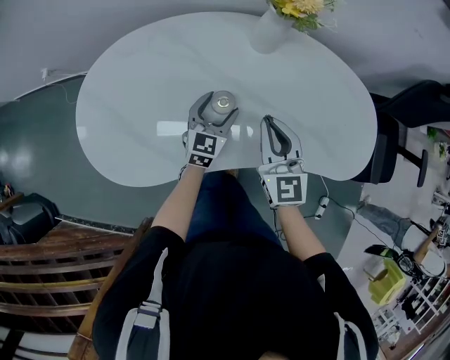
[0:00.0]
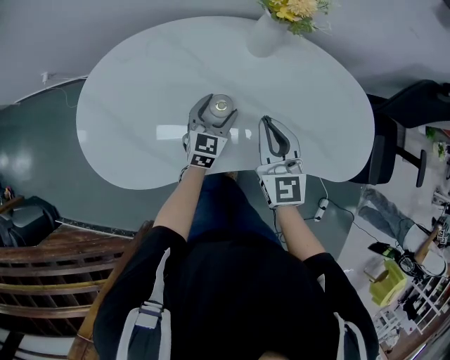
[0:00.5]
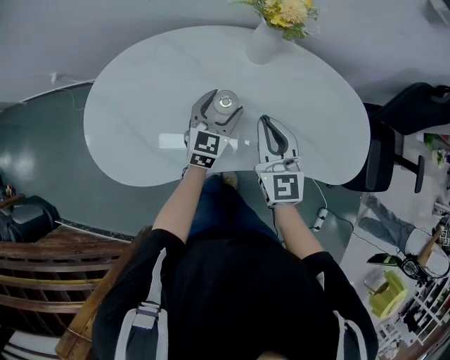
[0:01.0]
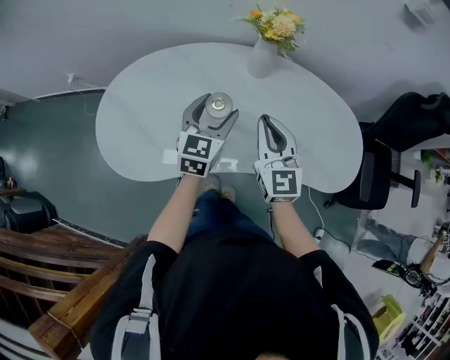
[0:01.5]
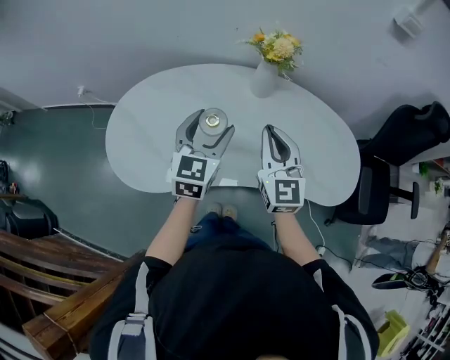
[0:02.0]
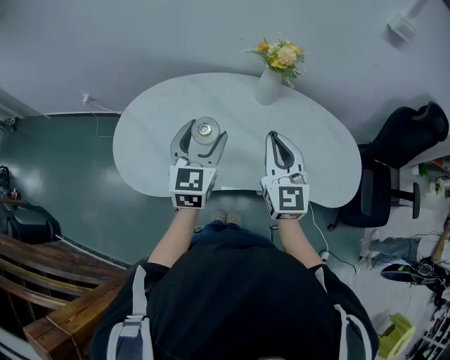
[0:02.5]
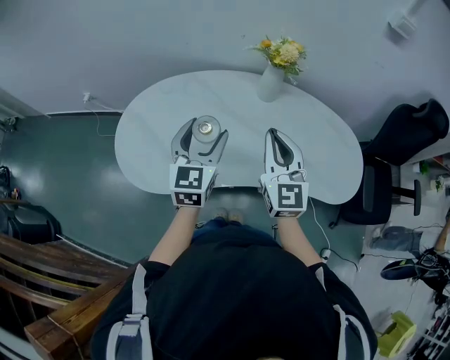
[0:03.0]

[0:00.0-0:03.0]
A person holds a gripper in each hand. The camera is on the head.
0:00.0 to 0:01.5: The left gripper is displaced upward by approximately 15 cm. Meanwhile the right gripper goes approximately 10 cm upward.
0:01.5 to 0:03.0: The left gripper heads upward, to the left and backward, covering some 15 cm. Meanwhile the right gripper travels upward by approximately 5 cm.

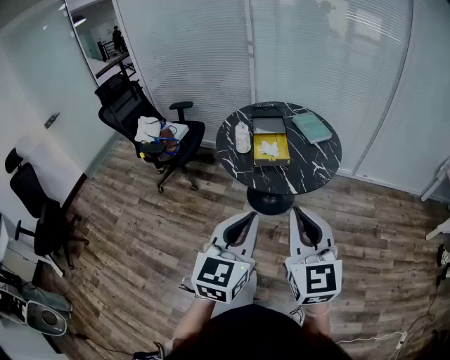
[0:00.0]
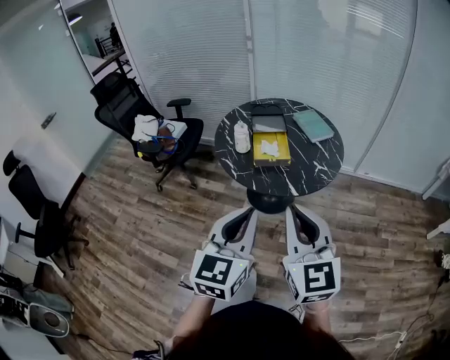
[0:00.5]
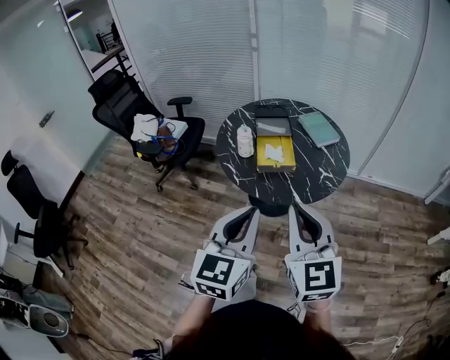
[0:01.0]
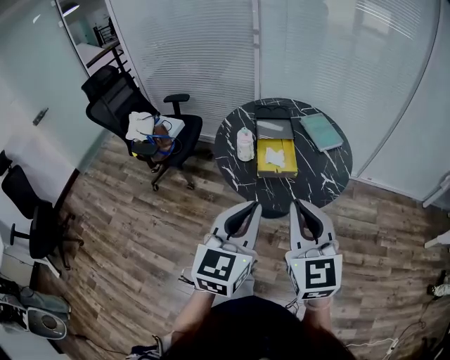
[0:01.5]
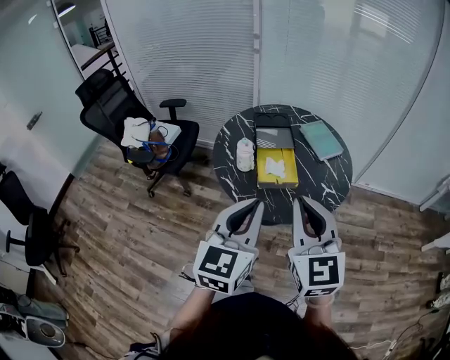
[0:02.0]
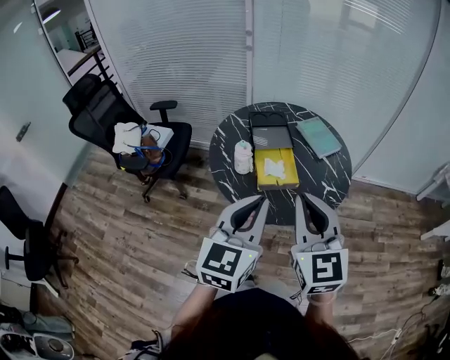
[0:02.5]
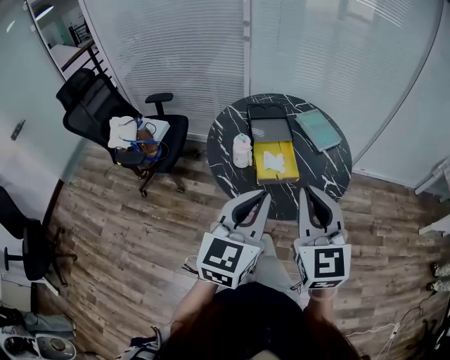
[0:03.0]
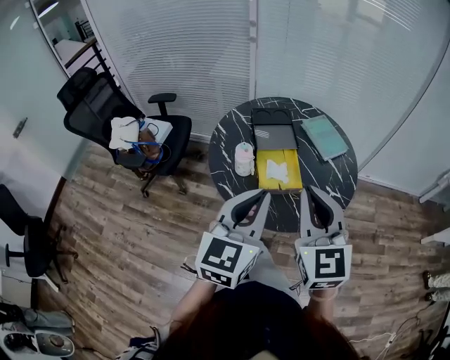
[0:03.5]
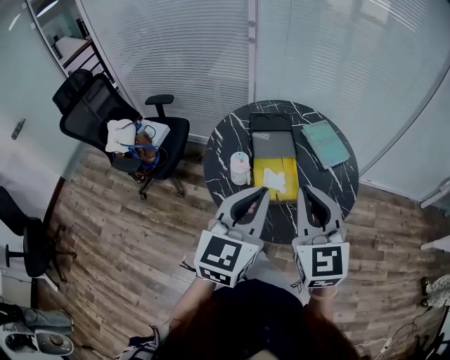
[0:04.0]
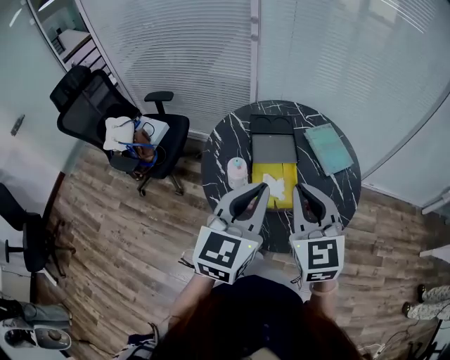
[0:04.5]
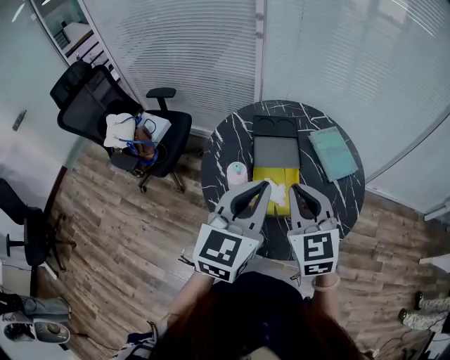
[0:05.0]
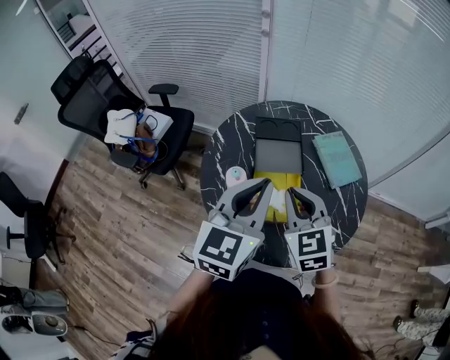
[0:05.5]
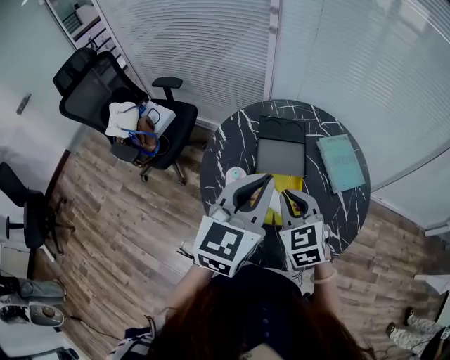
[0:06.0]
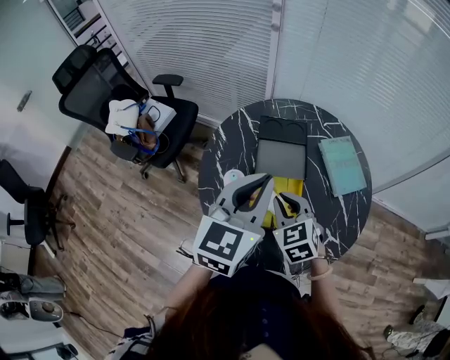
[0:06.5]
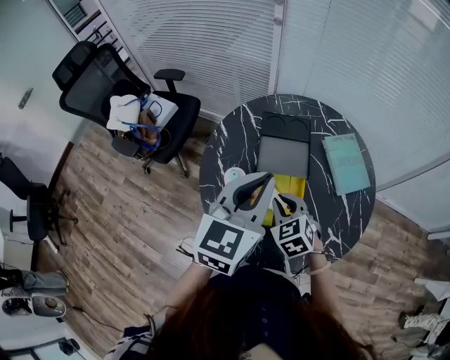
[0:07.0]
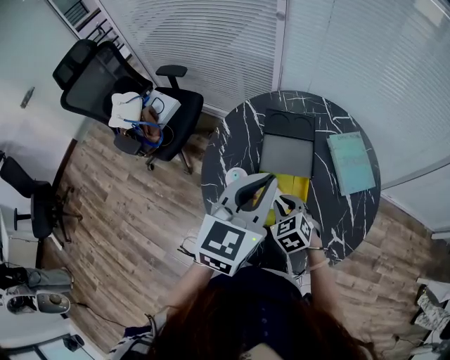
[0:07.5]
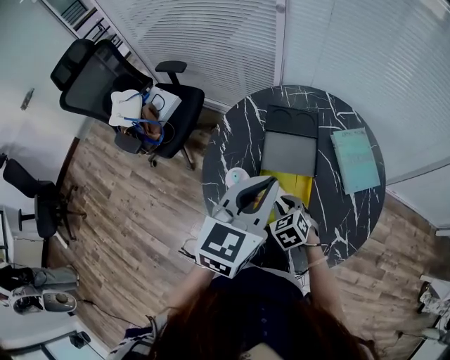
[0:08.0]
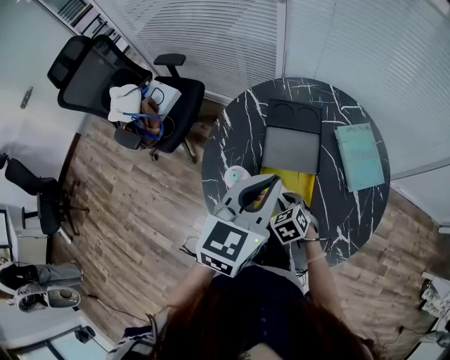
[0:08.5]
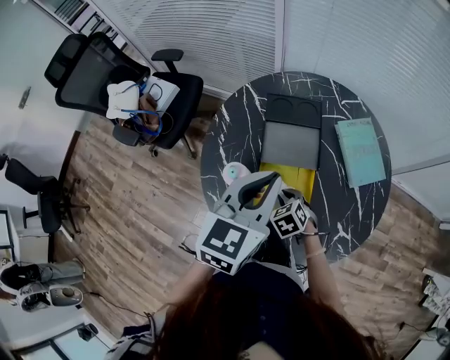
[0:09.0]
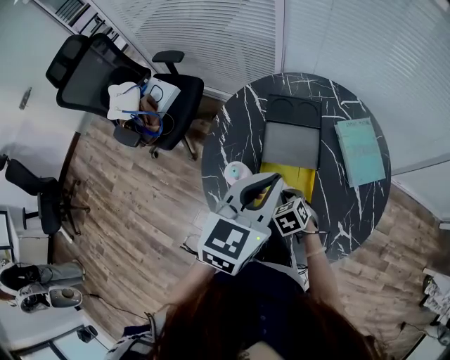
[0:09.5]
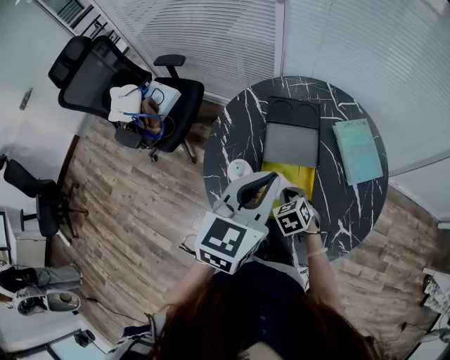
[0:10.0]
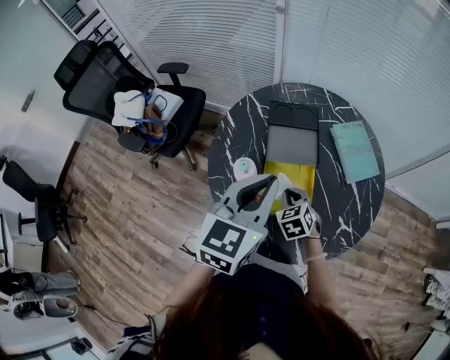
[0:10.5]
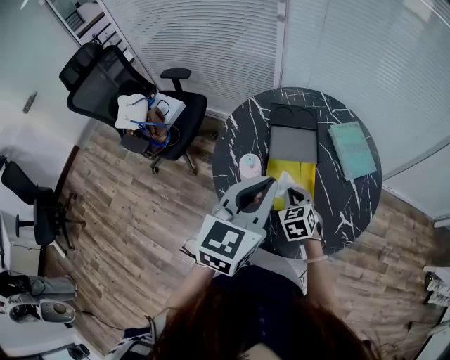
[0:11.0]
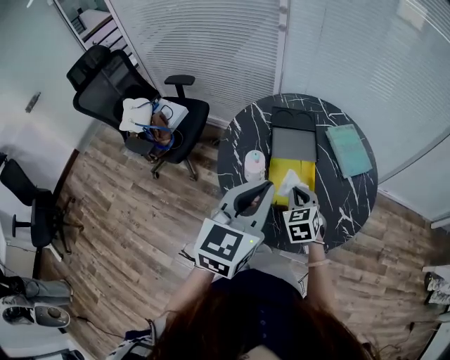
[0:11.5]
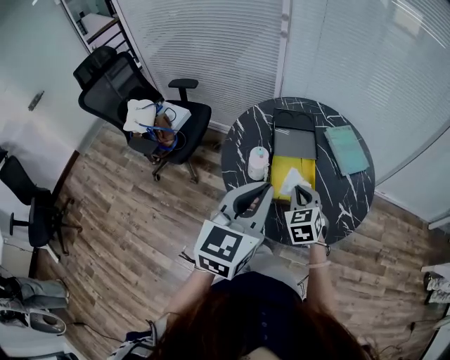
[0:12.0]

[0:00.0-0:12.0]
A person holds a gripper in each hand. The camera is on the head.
0:00.0 to 0:02.0: The grippers both shift forward by approximately 20 cm.
0:02.0 to 0:04.0: The grippers both shift forward by approximately 15 cm.
0:04.0 to 0:06.0: The right gripper is displaced downward and forward by roughly 20 cm, and turns by roughly 30 degrees. The left gripper is displaced forward by approximately 15 cm.
0:06.0 to 0:08.0: The left gripper moves downward, approximately 5 cm; the right gripper travels downward by approximately 20 cm, and rotates about 20 degrees.
0:08.0 to 0:10.0: There are only small adjustments of the grippers.
0:10.0 to 0:12.0: The right gripper travels upward and backward by some 20 cm, and rotates some 30 degrees, while the left gripper travels backward by approximately 15 cm.

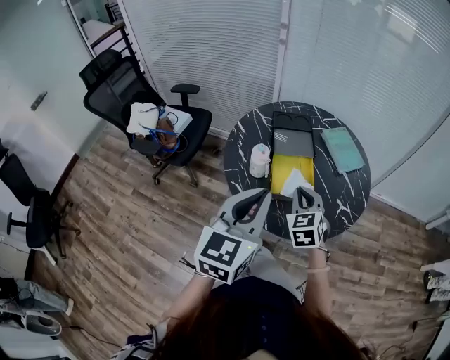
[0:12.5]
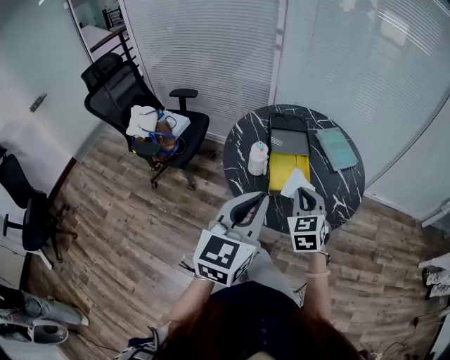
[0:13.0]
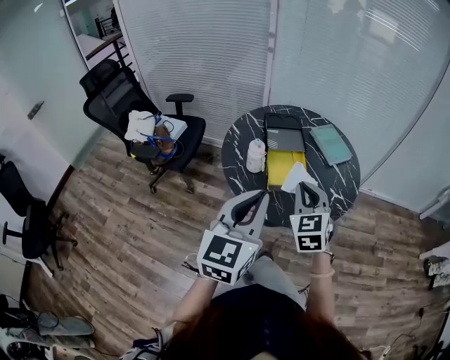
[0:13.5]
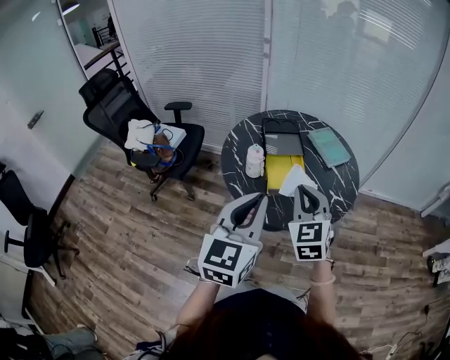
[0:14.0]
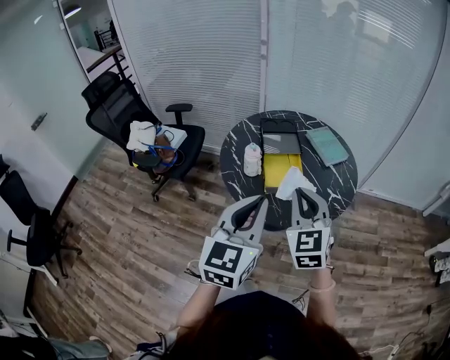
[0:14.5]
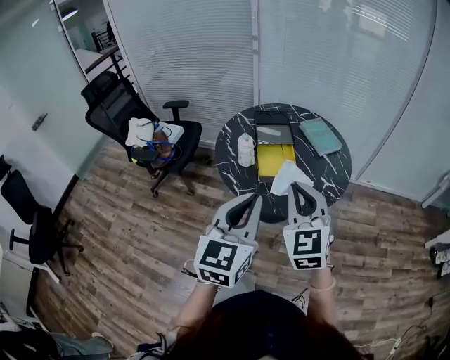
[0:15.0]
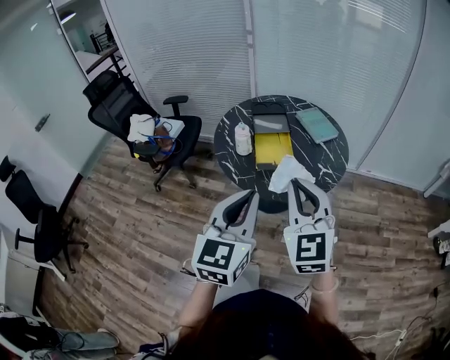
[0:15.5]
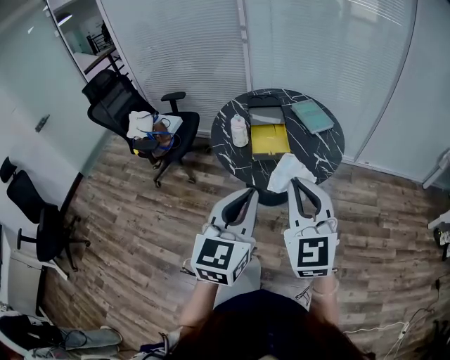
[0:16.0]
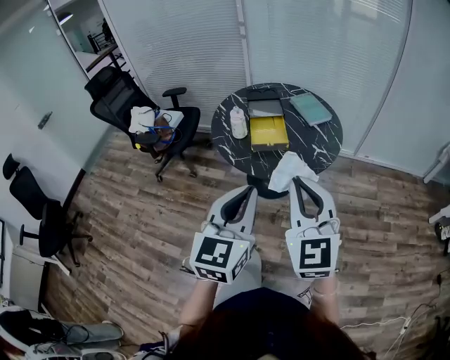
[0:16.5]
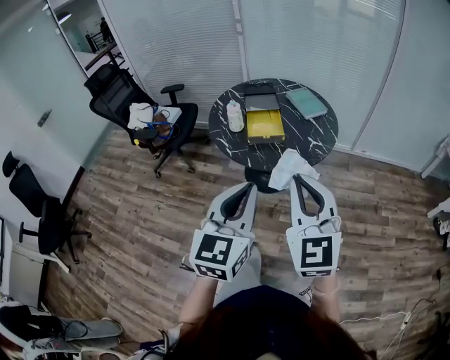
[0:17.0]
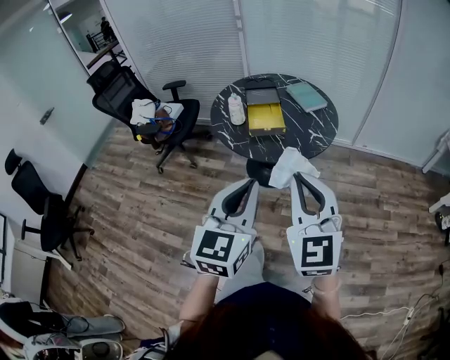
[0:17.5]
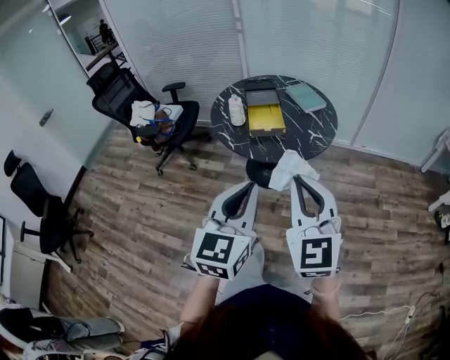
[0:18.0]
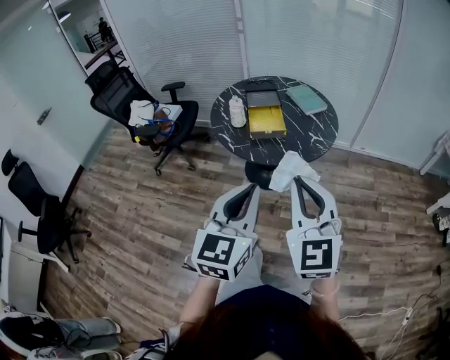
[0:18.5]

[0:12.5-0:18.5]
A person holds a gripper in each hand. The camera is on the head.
0:12.5 to 0:14.5: The right gripper travels backward and upward by roughly 20 cm. Meanwhile the left gripper is displaced backward by some 10 cm.
0:14.5 to 0:16.5: The right gripper heads backward, covering some 20 cm. The left gripper goes about 20 cm backward and to the right.
0:16.5 to 0:18.5: The grippers both shift backward by roughly 5 cm.

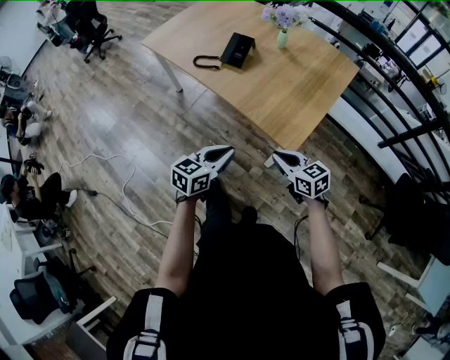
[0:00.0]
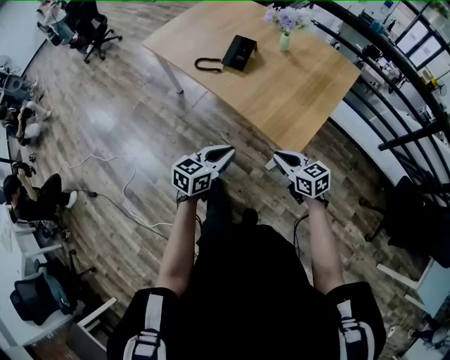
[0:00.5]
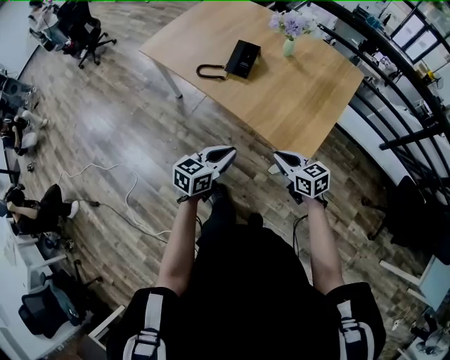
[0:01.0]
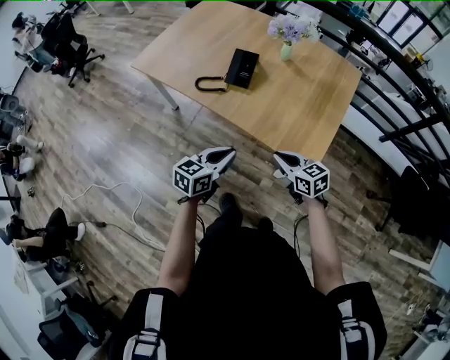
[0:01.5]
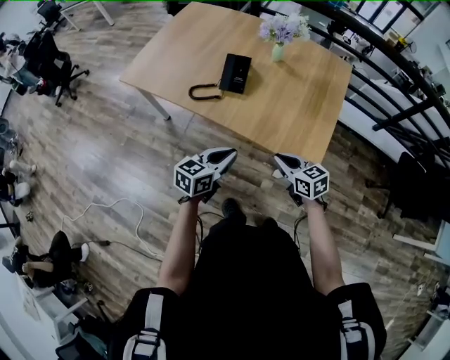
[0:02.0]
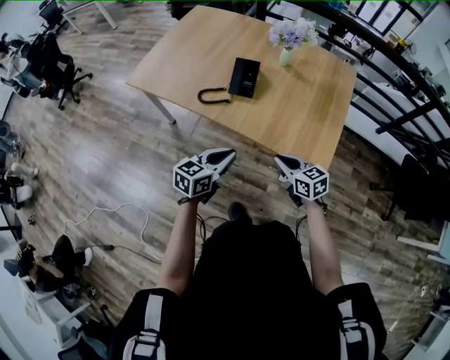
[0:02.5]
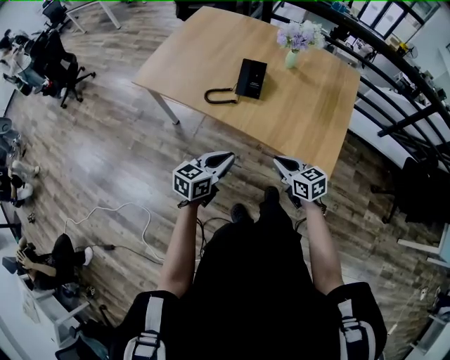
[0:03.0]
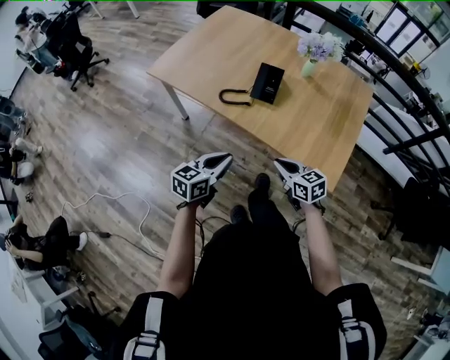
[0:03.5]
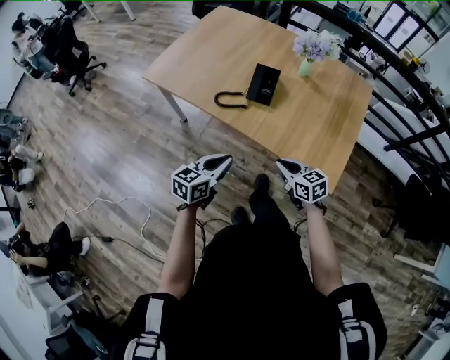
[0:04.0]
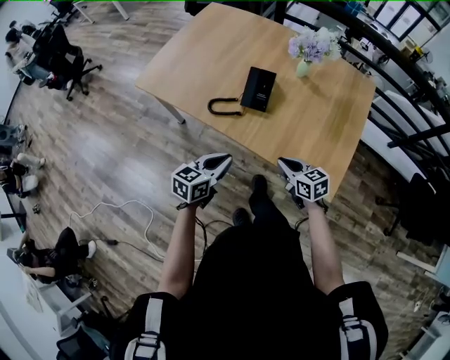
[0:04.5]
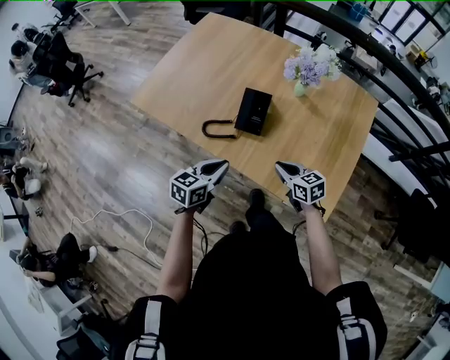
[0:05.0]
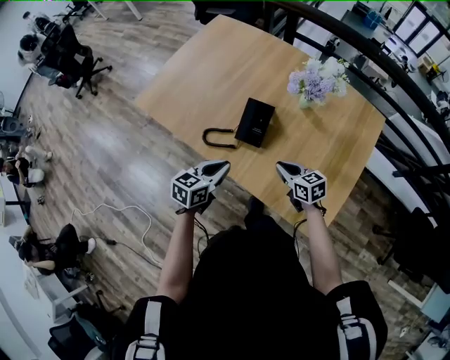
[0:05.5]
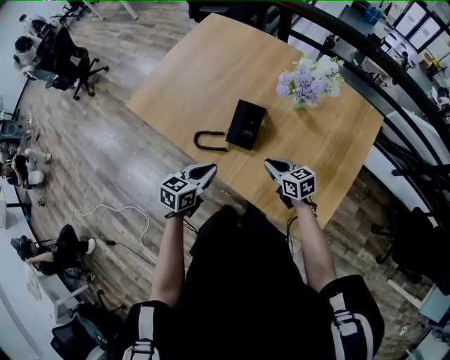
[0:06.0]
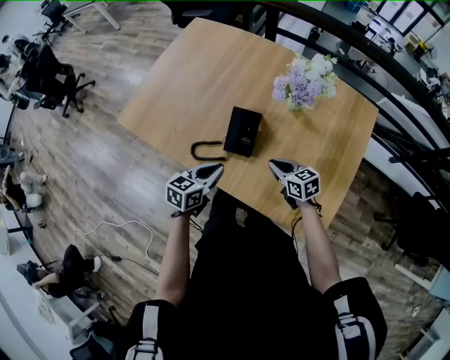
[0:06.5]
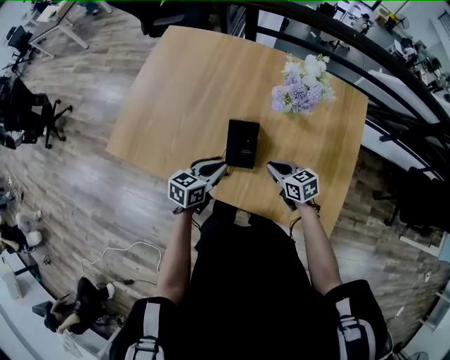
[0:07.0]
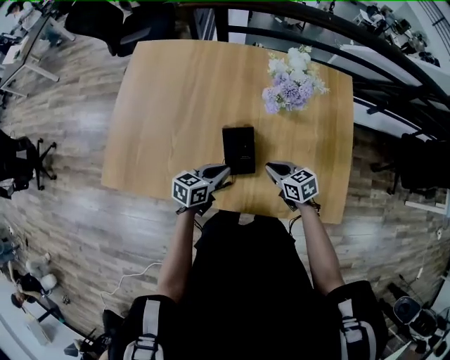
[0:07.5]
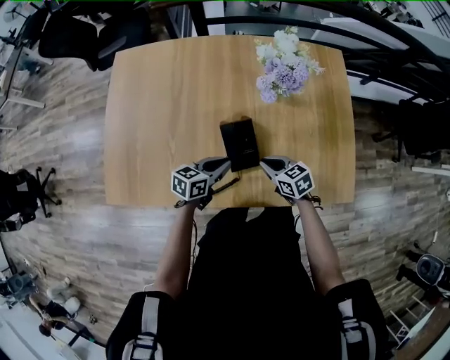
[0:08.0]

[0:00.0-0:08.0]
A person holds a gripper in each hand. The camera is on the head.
0:00.0 to 0:02.0: The grippers both shift forward and to the left by some 20 cm.
0:02.0 to 0:04.0: The two grippers go about 10 cm to the left.
0:04.0 to 0:06.0: The two grippers go roughly 20 cm forward.
0:06.0 to 0:08.0: The right gripper shifts by roughly 10 cm, and swivels roughly 30 degrees. Meanwhile the left gripper changes place by approximately 20 cm, and swivels roughly 40 degrees.
